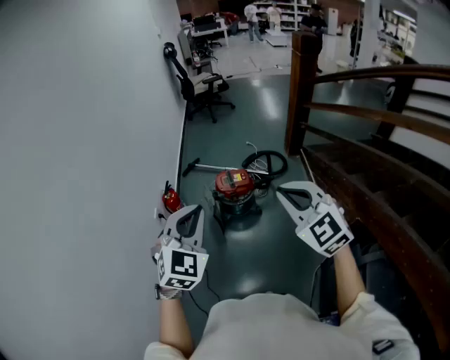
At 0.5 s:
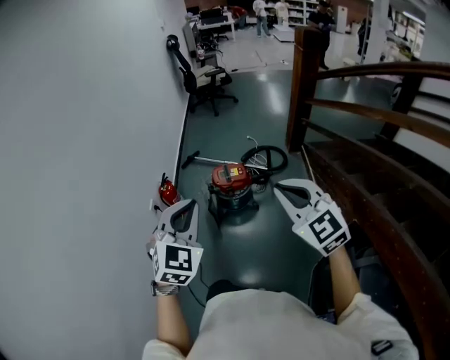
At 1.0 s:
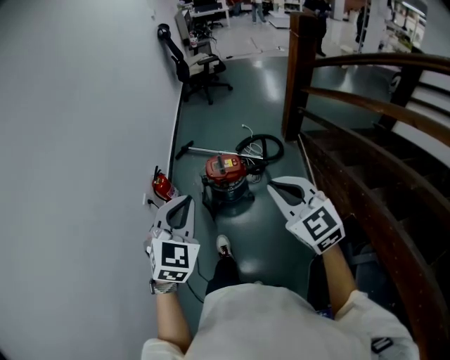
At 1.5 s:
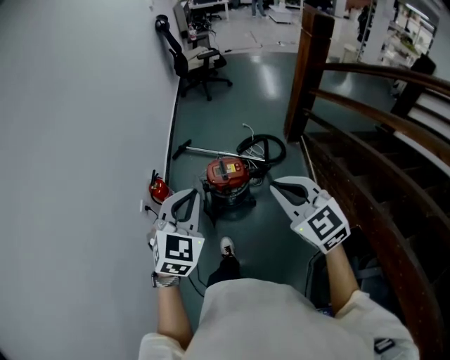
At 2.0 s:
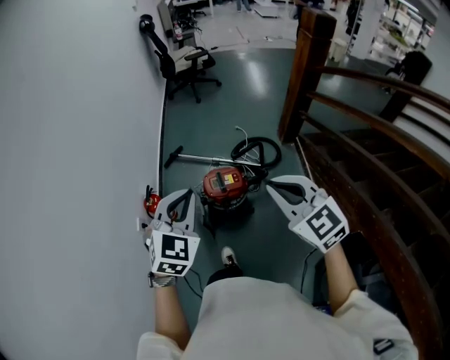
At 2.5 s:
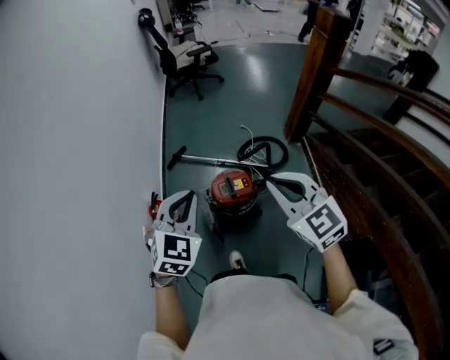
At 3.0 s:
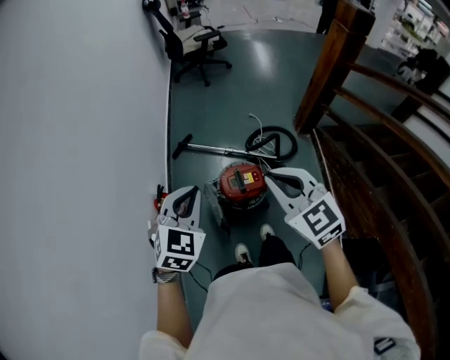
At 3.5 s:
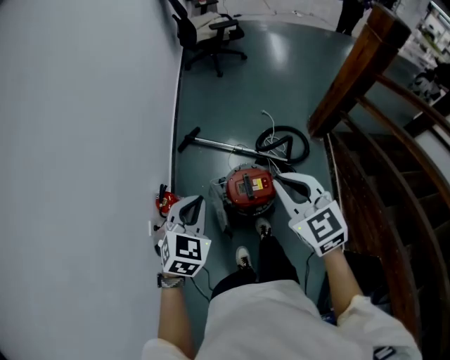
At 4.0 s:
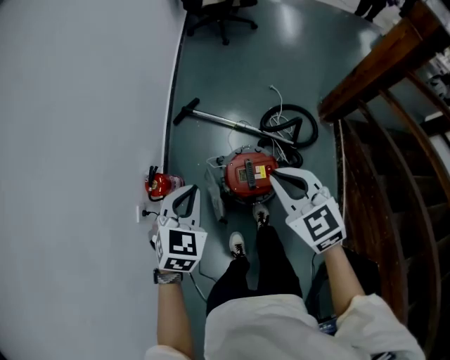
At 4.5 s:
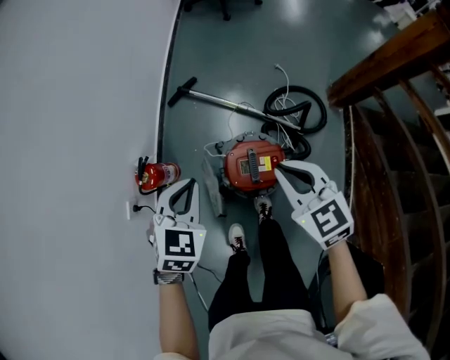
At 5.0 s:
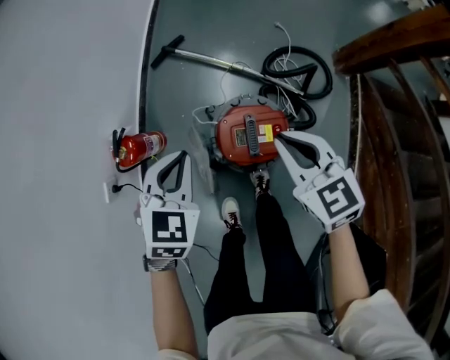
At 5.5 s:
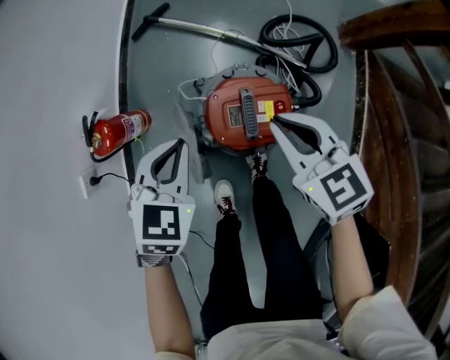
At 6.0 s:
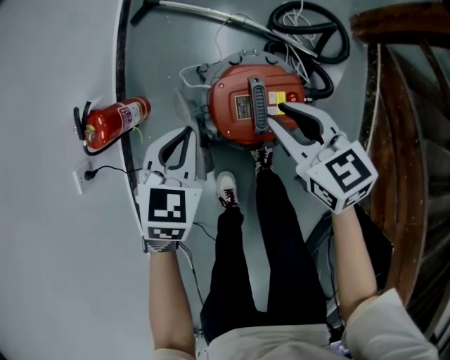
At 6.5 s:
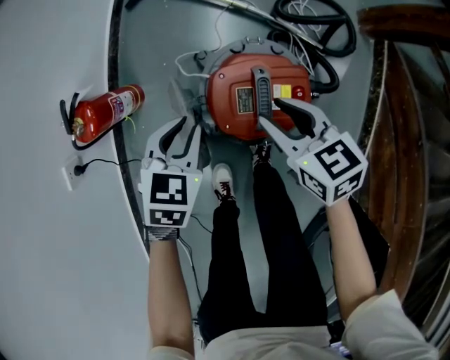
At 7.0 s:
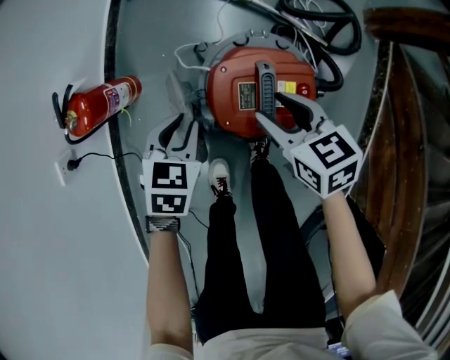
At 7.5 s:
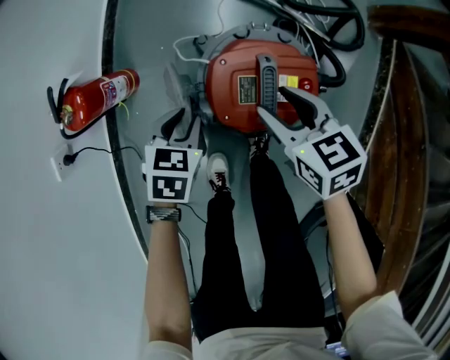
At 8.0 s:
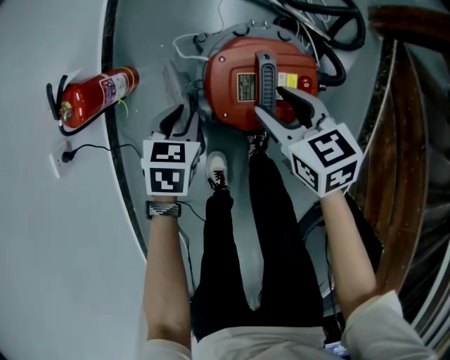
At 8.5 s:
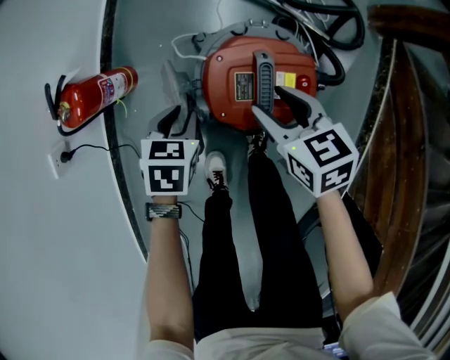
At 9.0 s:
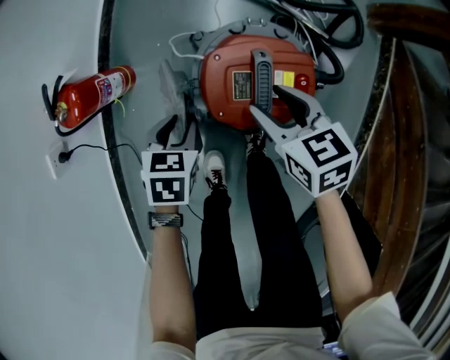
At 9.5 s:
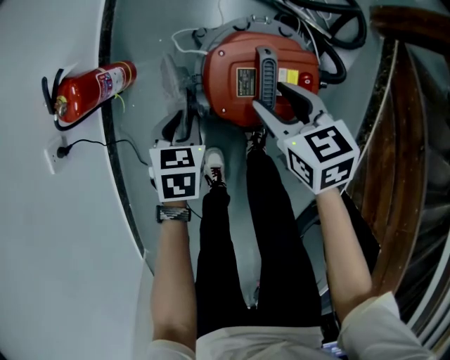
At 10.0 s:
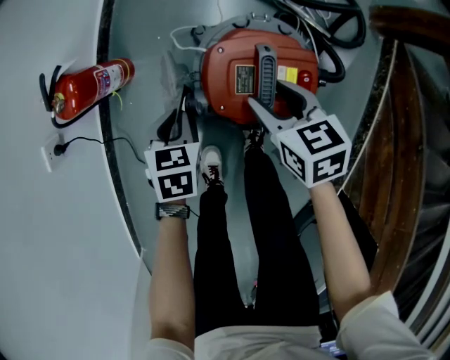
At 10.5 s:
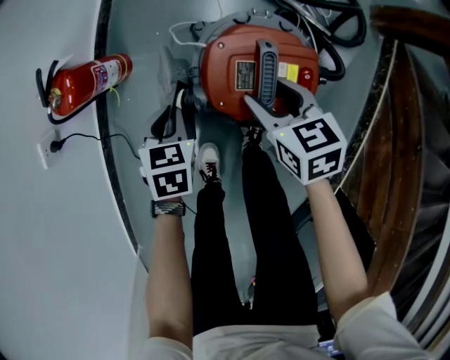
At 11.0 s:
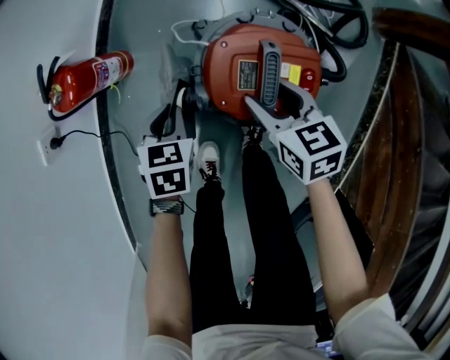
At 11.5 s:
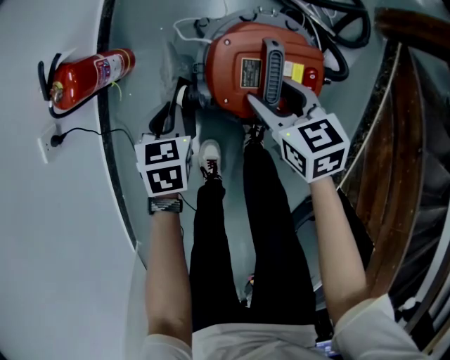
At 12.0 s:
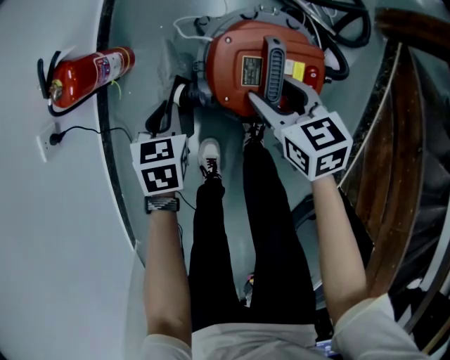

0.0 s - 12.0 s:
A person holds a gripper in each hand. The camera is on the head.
0.0 s - 2.0 s: Both grippers move forward, approximately 25 cm.
2.0 s - 4.0 s: Both grippers move forward and downward, about 35 cm. The left gripper changes its angle by roughly 20 degrees.
4.0 s - 6.0 s: The grippers both shift downward by approximately 35 cm. The right gripper changes its angle by about 20 degrees.
6.0 s - 8.0 s: The grippers both shift downward by about 10 cm. The right gripper opens its fingers; the left gripper swivels some 20 degrees, and opens its fingers.
8.0 s - 12.0 s: The grippers move only a little.

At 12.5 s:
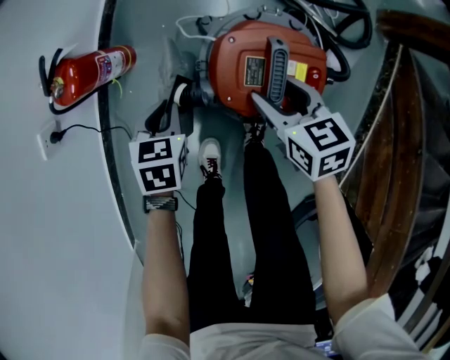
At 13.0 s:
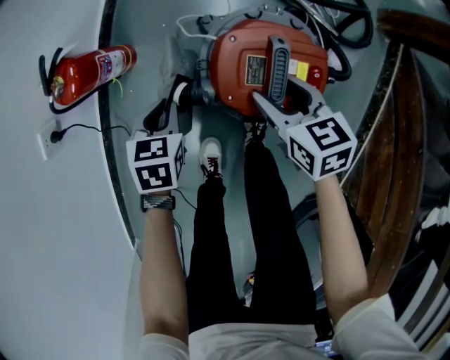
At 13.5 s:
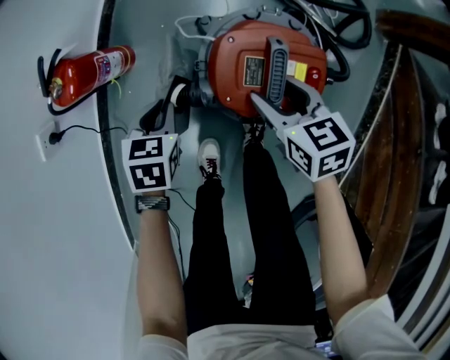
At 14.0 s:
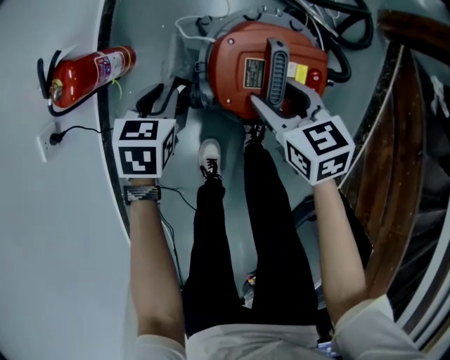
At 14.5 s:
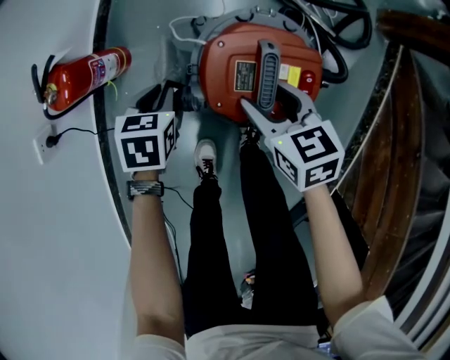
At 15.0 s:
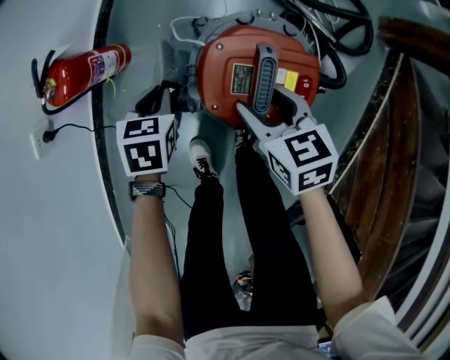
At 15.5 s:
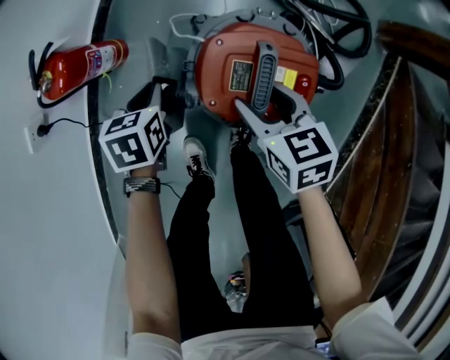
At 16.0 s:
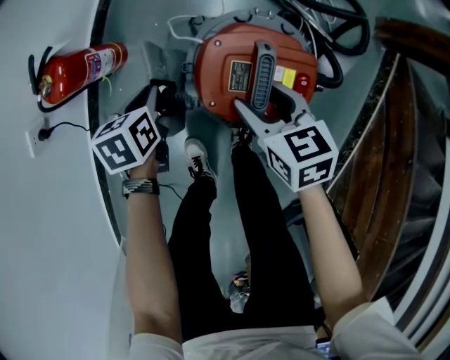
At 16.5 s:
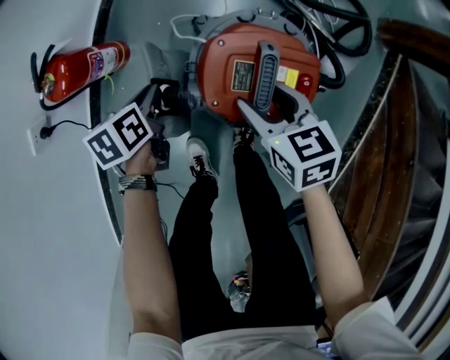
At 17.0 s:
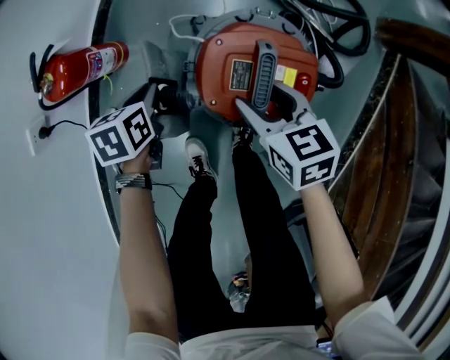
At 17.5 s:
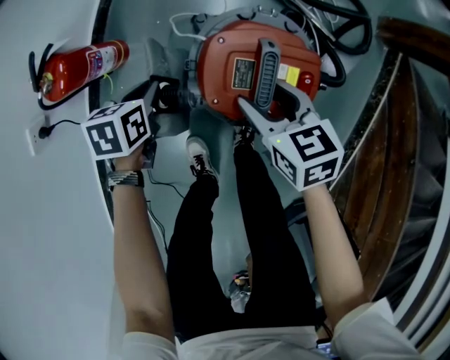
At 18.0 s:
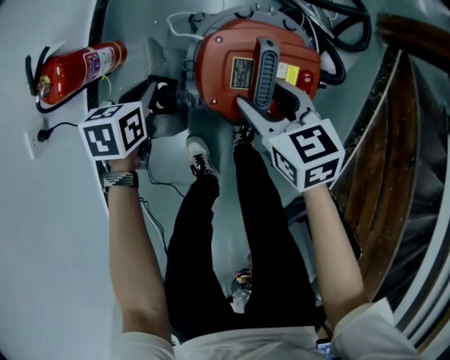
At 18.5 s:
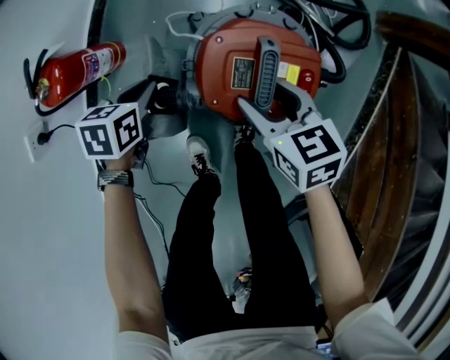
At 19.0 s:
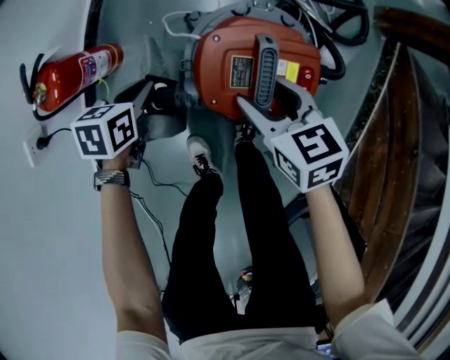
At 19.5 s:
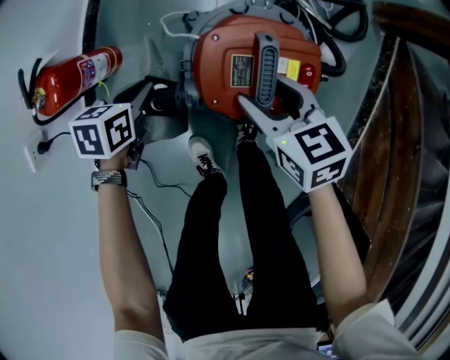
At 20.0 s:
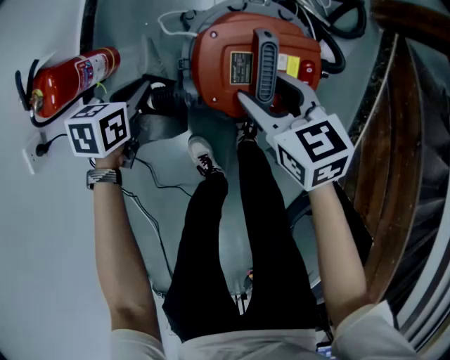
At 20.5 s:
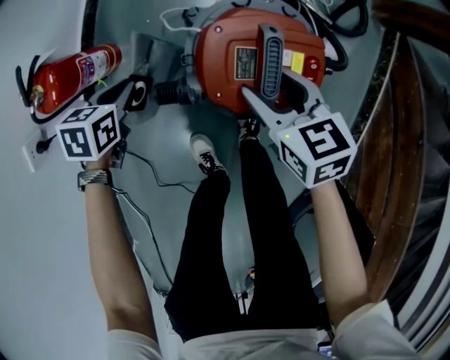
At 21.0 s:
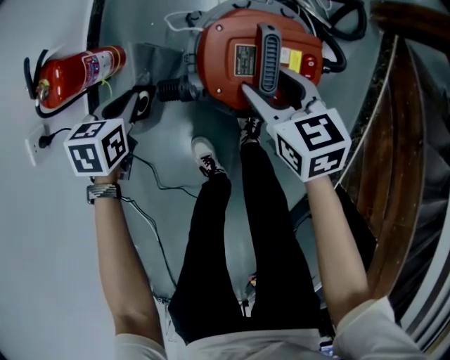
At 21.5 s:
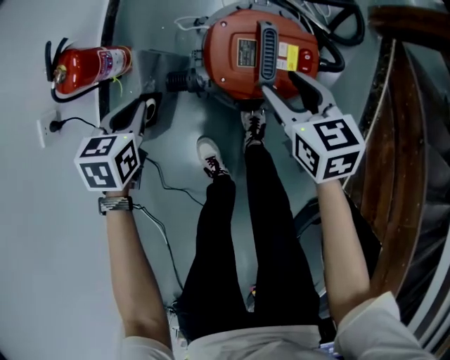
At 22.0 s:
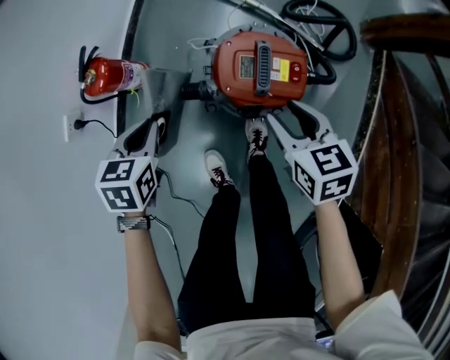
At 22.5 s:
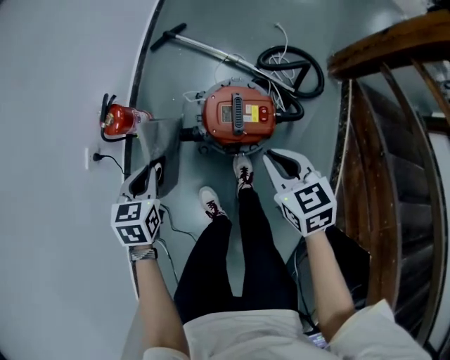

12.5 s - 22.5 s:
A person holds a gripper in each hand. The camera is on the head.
12.5 s - 14.5 s: There are only small adjustments of the grippers.
14.5 s - 16.5 s: The left gripper turns by about 40 degrees.
16.5 s - 18.5 s: The left gripper turns by about 30 degrees.
18.5 s - 20.5 s: The grippers move only a little.
20.5 s - 22.5 s: Both grippers travel together upward and backward, roughly 25 cm. The left gripper rotates about 20 degrees; the right gripper closes up.

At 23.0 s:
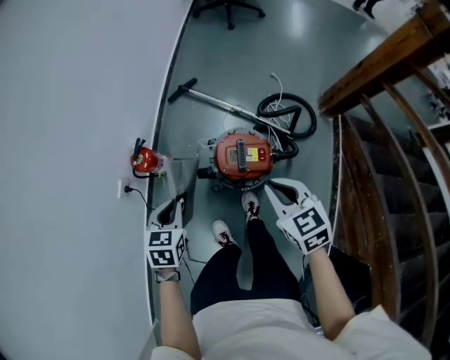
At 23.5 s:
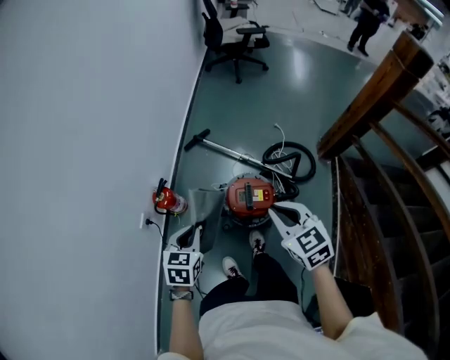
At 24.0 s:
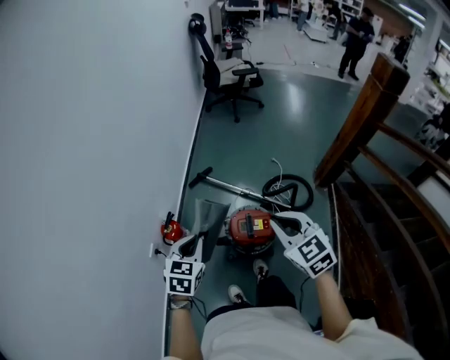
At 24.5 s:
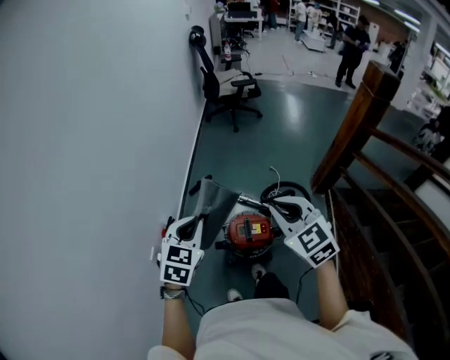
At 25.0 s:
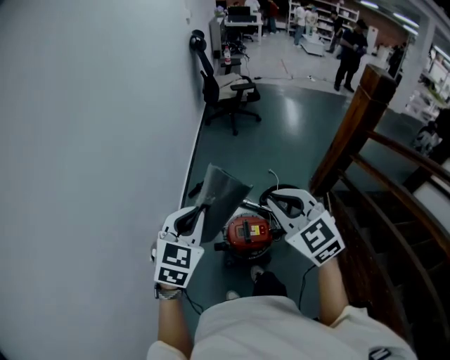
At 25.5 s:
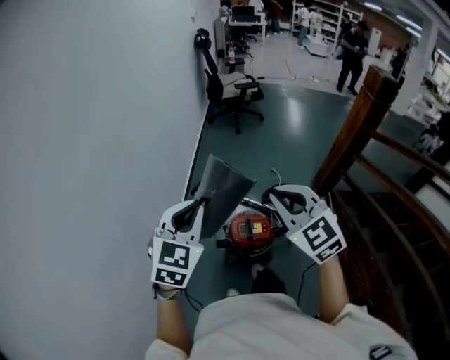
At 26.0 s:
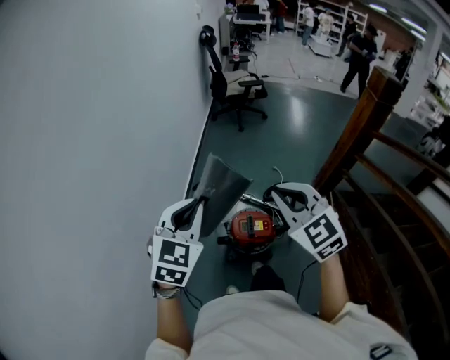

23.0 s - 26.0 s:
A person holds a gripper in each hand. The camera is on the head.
23.0 s - 24.5 s: The grippers both shift upward by roughly 30 cm. The right gripper turns by approximately 30 degrees, while the left gripper rotates some 30 degrees.
24.5 s - 26.0 s: The right gripper heads upward, covering approximately 5 cm; the left gripper goes some 10 cm upward.

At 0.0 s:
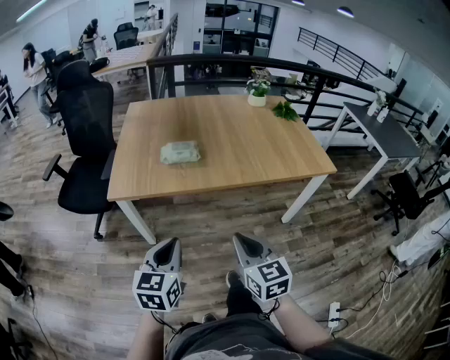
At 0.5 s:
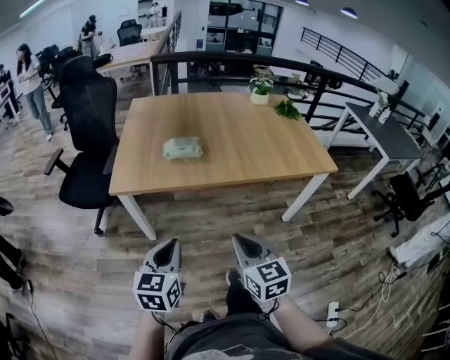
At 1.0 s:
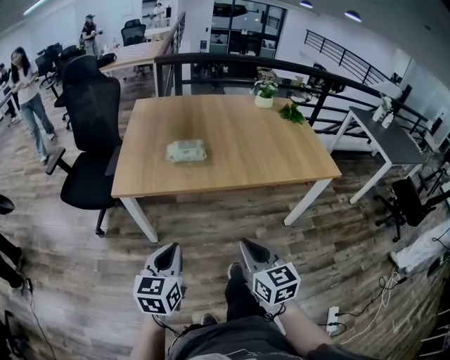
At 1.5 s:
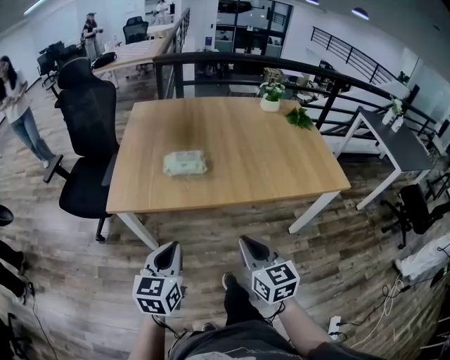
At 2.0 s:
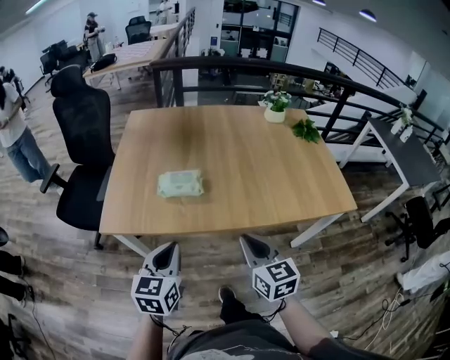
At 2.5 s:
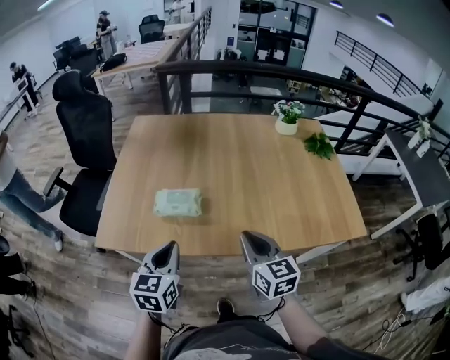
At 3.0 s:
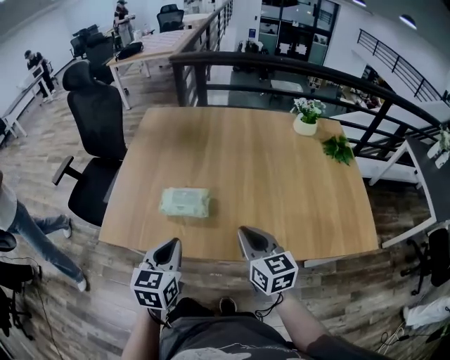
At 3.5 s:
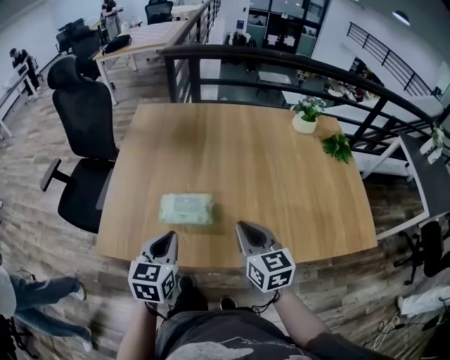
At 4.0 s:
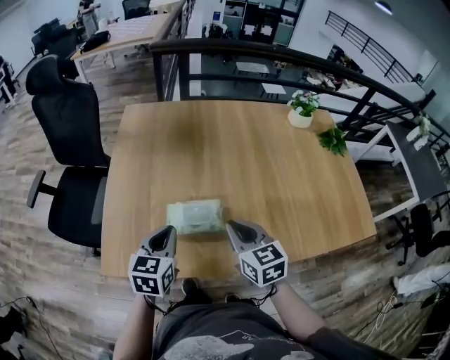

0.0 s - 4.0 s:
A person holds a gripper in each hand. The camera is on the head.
0.0 s - 2.0 s: Both grippers move forward, approximately 20 cm.
2.0 s - 4.0 s: The two grippers go about 25 cm forward.
